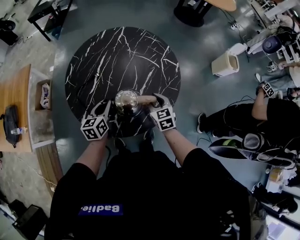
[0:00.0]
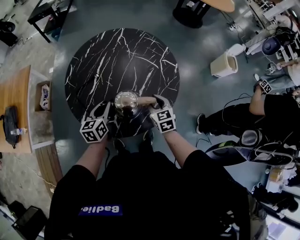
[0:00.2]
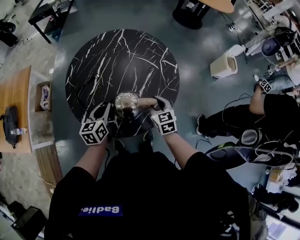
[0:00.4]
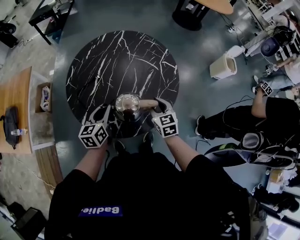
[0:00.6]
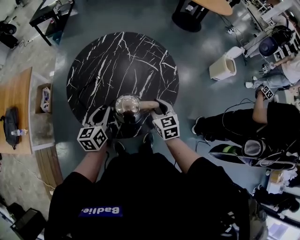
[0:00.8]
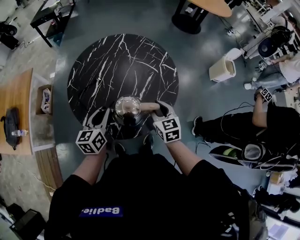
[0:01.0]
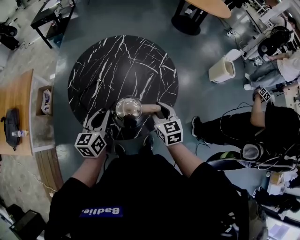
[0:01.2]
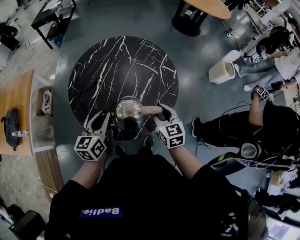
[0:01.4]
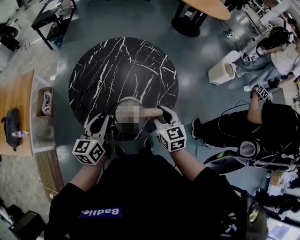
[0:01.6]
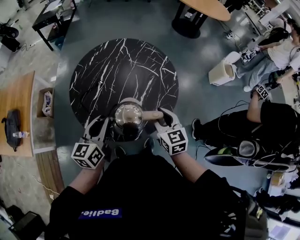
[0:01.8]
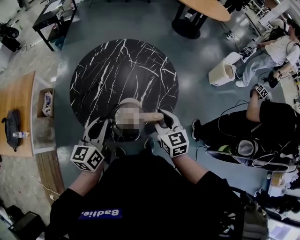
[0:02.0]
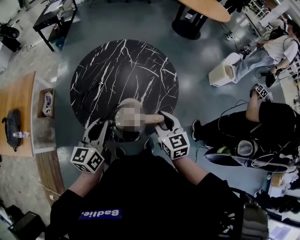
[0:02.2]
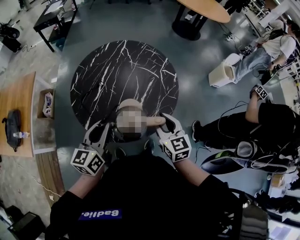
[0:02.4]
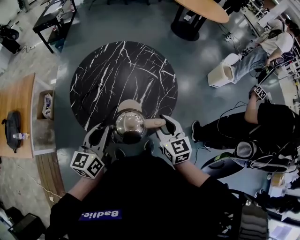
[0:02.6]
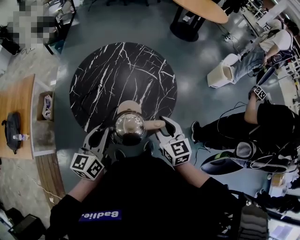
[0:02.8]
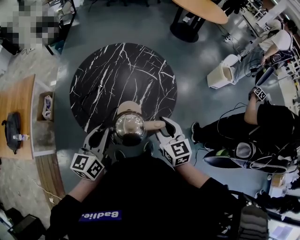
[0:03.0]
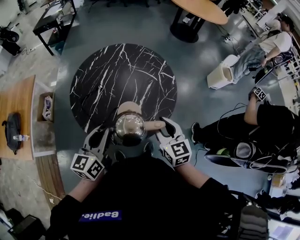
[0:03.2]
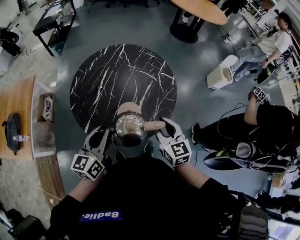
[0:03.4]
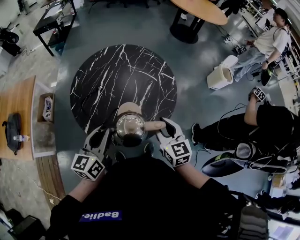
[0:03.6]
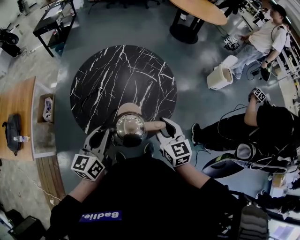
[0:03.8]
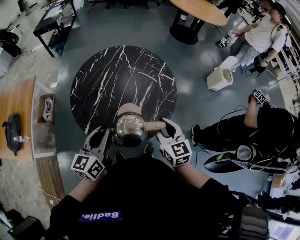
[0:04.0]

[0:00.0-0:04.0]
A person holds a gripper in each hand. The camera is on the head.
0:00.0 to 0:01.4: Both grippers travel together upward and backward, approximately 15 cm.
0:01.4 to 0:02.6: Both grippers travel together upward, about 5 cm.
0:02.6 to 0:04.0: The two grippers keep their place.

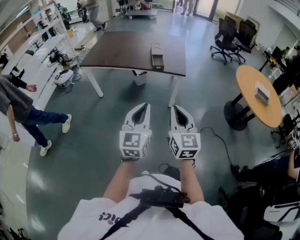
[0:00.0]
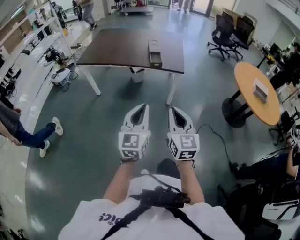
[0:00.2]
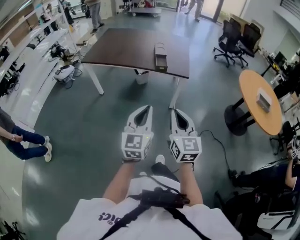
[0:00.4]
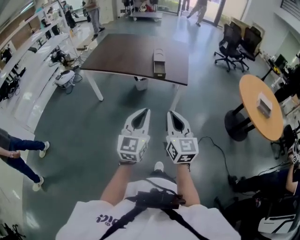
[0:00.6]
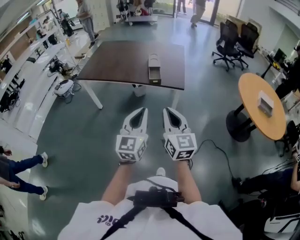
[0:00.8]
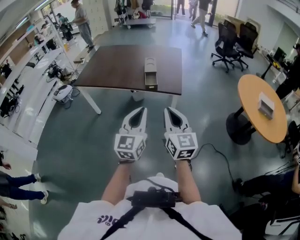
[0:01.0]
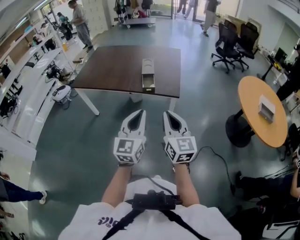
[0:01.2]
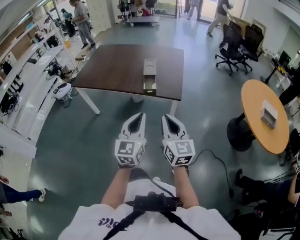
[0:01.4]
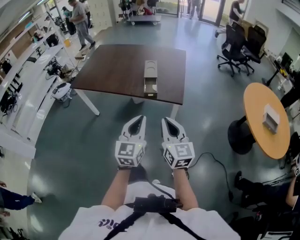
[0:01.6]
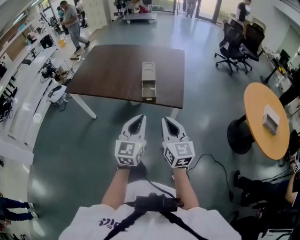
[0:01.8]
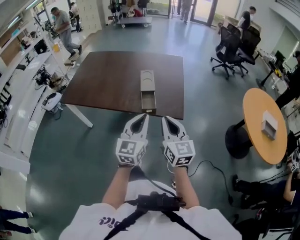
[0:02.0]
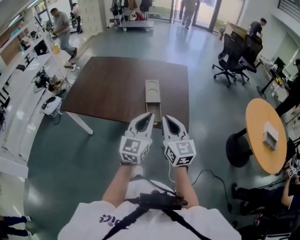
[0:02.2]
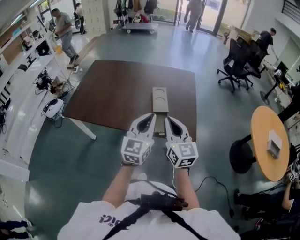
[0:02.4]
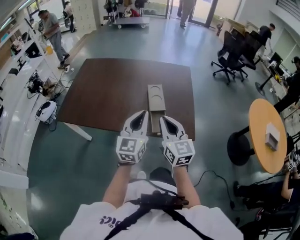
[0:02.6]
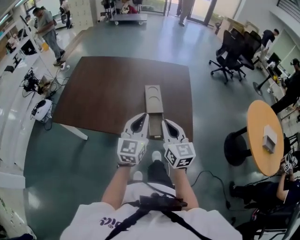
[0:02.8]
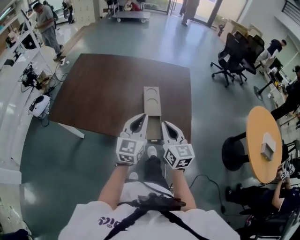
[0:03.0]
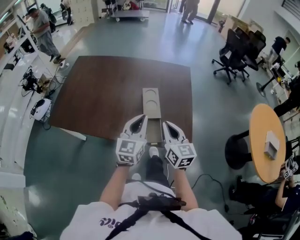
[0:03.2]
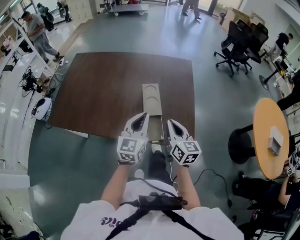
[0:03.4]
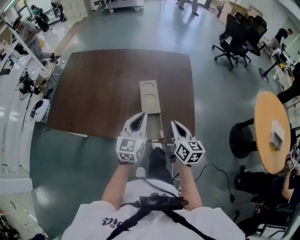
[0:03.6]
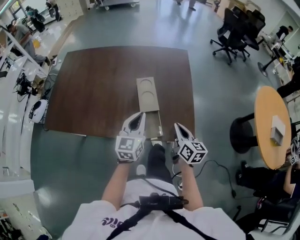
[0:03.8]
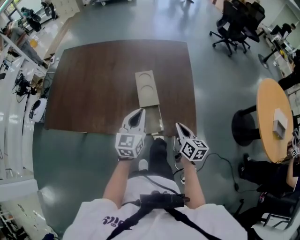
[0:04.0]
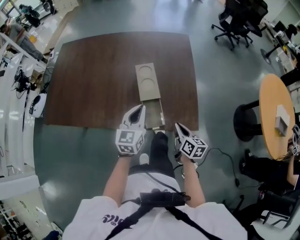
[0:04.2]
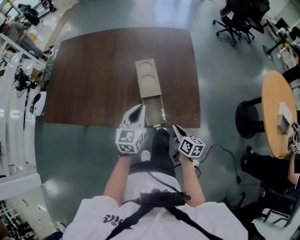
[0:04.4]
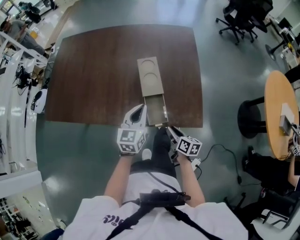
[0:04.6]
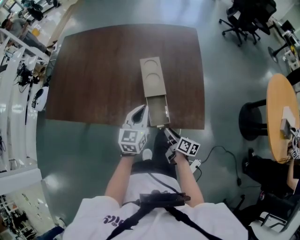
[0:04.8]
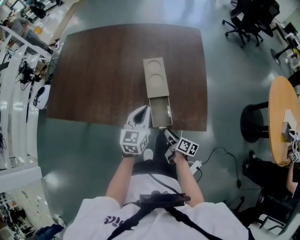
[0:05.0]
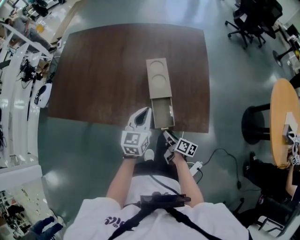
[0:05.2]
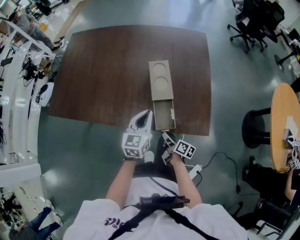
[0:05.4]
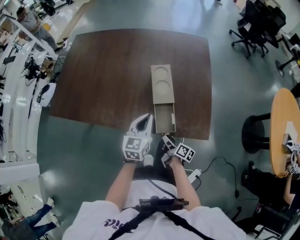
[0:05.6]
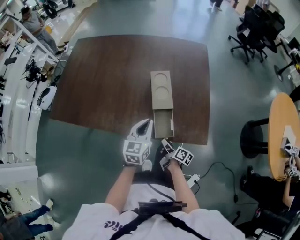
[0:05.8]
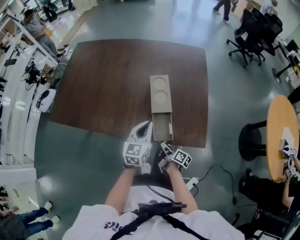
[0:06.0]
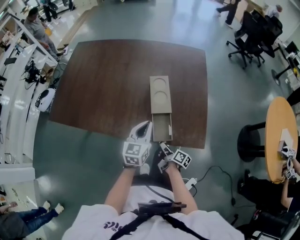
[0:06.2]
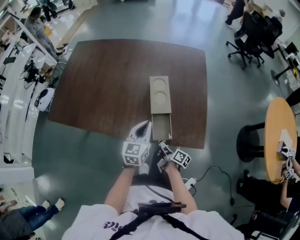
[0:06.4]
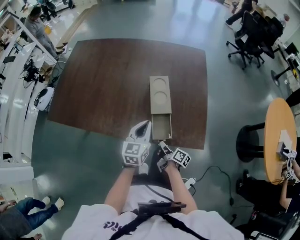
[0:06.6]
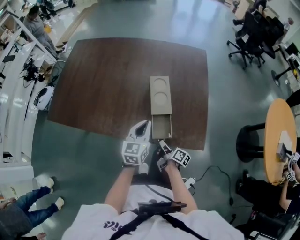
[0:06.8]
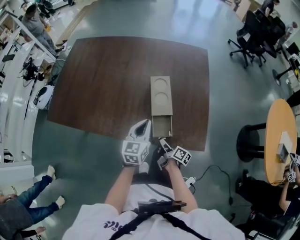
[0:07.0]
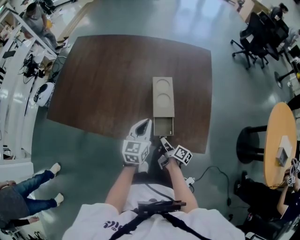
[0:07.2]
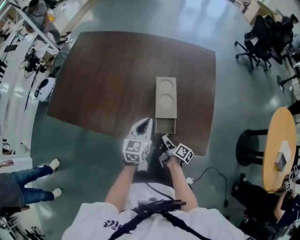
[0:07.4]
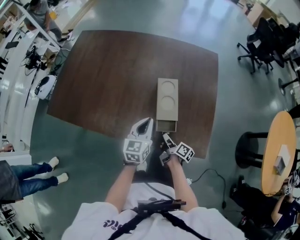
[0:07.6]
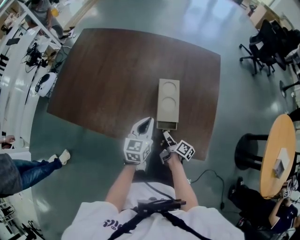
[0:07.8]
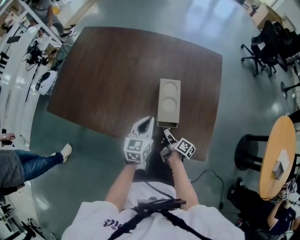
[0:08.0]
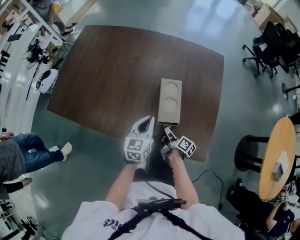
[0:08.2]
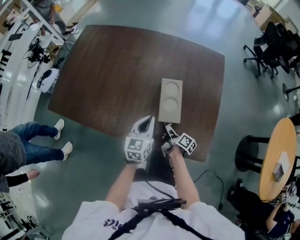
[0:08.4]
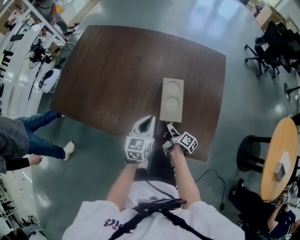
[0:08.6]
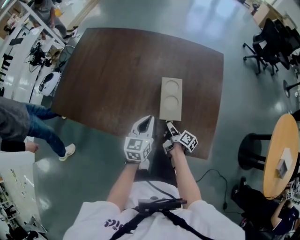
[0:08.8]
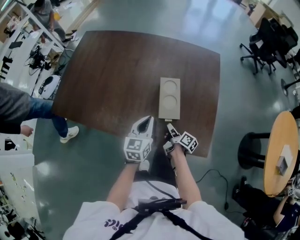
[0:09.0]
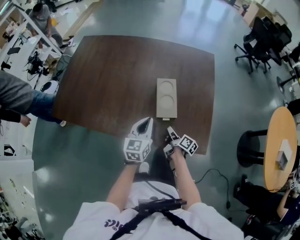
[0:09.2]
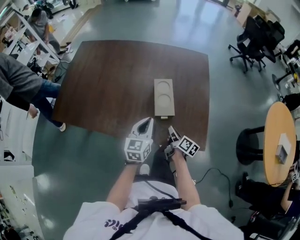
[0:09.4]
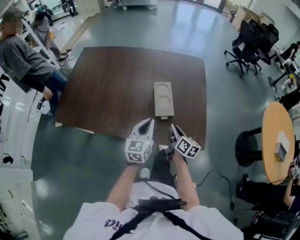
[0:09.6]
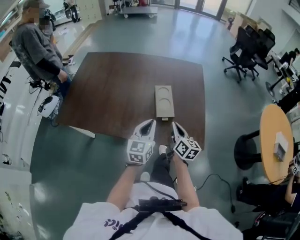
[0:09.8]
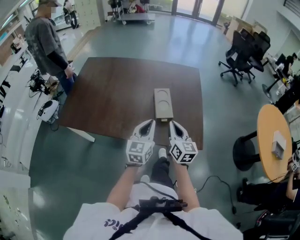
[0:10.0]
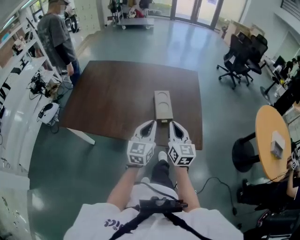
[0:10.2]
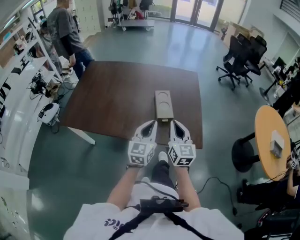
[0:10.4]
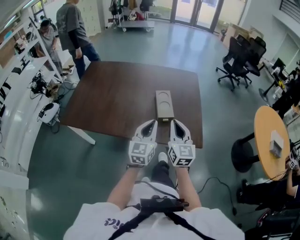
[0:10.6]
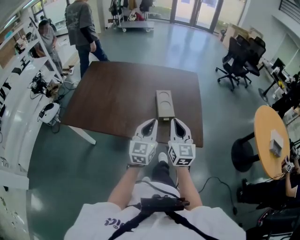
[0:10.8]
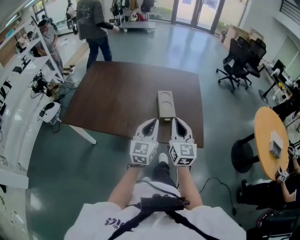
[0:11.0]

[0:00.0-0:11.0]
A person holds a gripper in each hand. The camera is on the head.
0:00.0 to 0:01.6: Both grippers move forward, roughly 30 cm.
0:01.6 to 0:03.2: The pair of grippers is taken forward, approximately 40 cm.
0:03.2 to 0:04.8: The right gripper shifts about 30 cm downward, rotates around the line of its fingers by approximately 50 degrees, clockwise from behind, and opens up, while the left gripper is displaced downward by approximately 15 cm.
0:04.8 to 0:06.2: The right gripper changes place by approximately 5 cm.
0:06.2 to 0:07.8: Both grippers move forward, about 10 cm.
0:07.8 to 0:09.4: The right gripper goes approximately 5 cm upward. Meanwhile the left gripper moves approximately 5 cm.
0:09.4 to 0:11.0: The right gripper travels upward and backward by roughly 35 cm, and twists about 60 degrees counterclockwise, seen from behind. The left gripper shifts approximately 20 cm upward and backward.

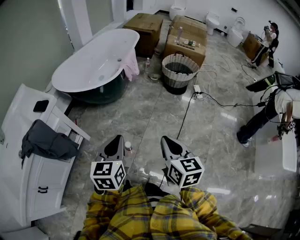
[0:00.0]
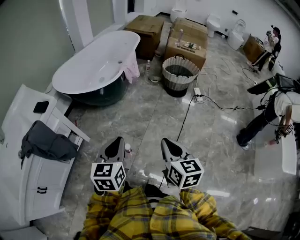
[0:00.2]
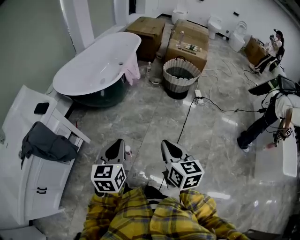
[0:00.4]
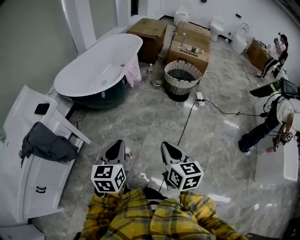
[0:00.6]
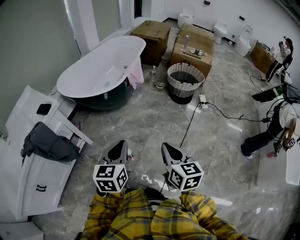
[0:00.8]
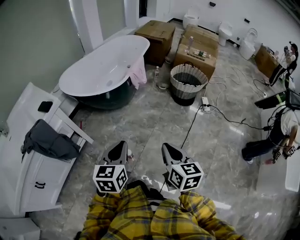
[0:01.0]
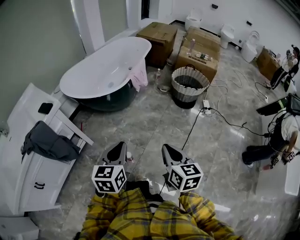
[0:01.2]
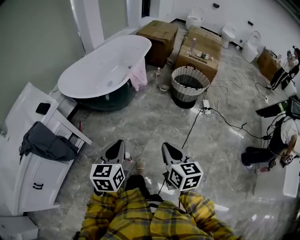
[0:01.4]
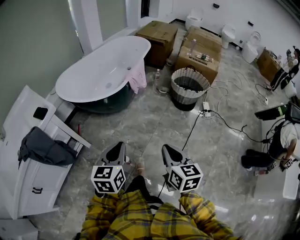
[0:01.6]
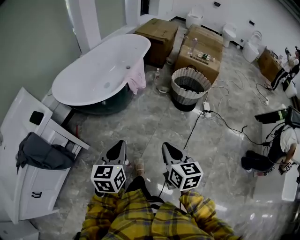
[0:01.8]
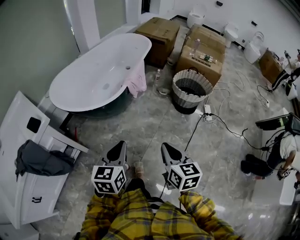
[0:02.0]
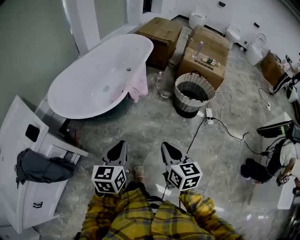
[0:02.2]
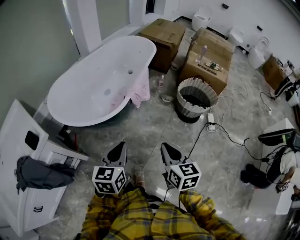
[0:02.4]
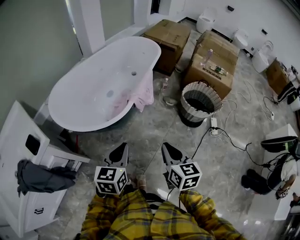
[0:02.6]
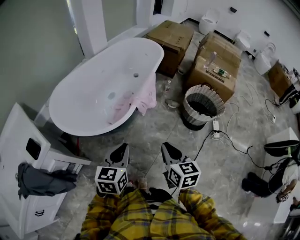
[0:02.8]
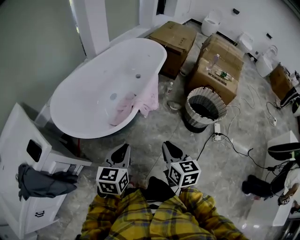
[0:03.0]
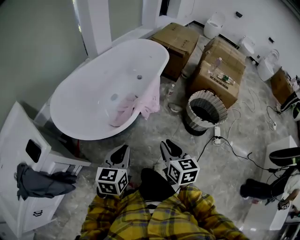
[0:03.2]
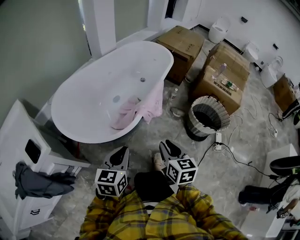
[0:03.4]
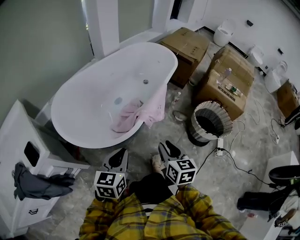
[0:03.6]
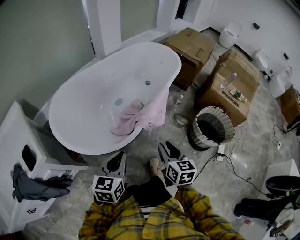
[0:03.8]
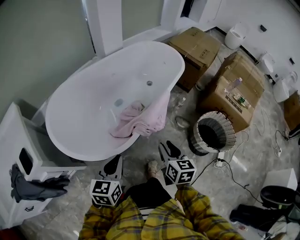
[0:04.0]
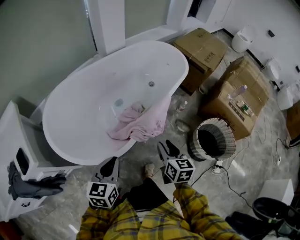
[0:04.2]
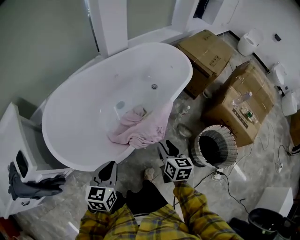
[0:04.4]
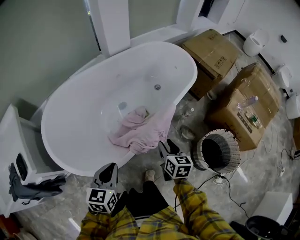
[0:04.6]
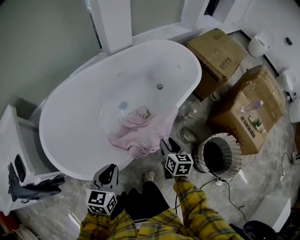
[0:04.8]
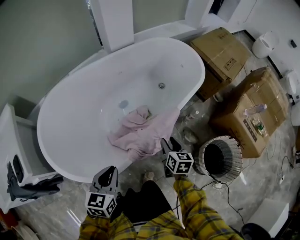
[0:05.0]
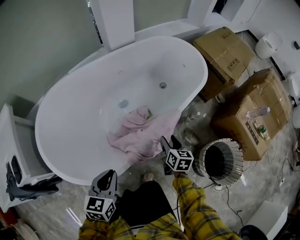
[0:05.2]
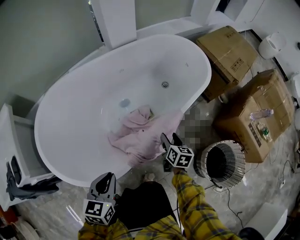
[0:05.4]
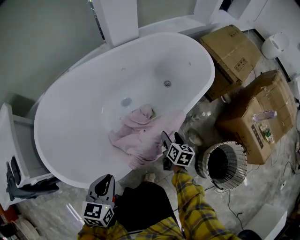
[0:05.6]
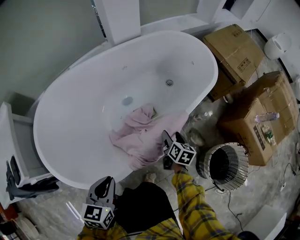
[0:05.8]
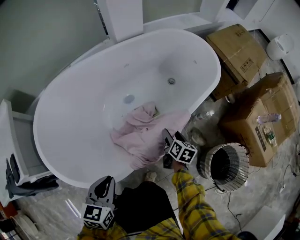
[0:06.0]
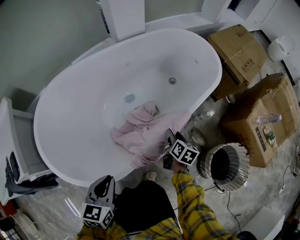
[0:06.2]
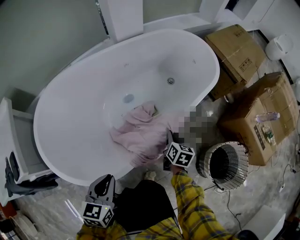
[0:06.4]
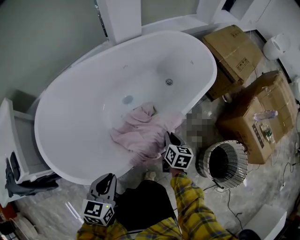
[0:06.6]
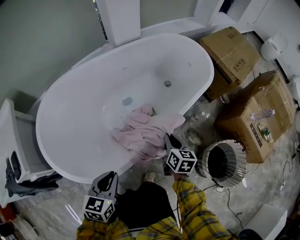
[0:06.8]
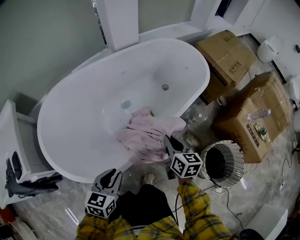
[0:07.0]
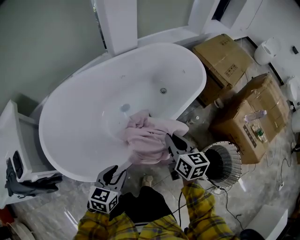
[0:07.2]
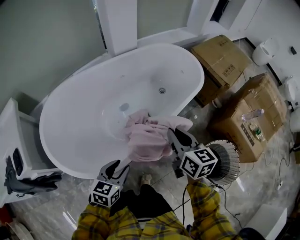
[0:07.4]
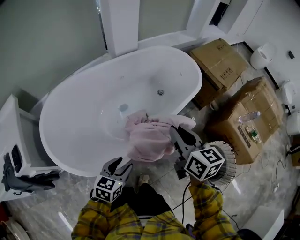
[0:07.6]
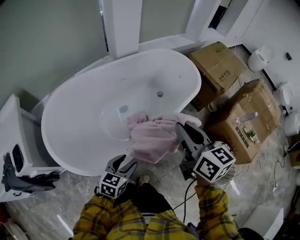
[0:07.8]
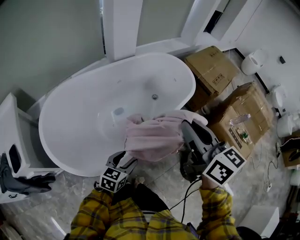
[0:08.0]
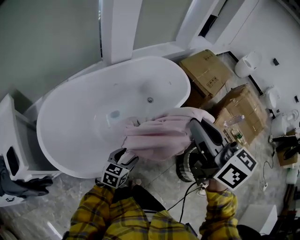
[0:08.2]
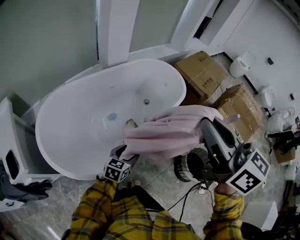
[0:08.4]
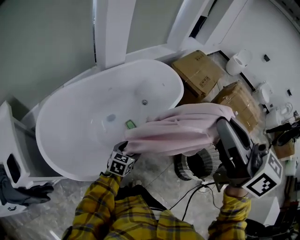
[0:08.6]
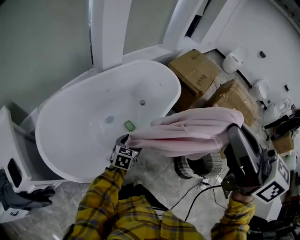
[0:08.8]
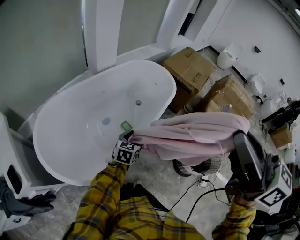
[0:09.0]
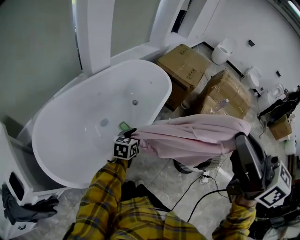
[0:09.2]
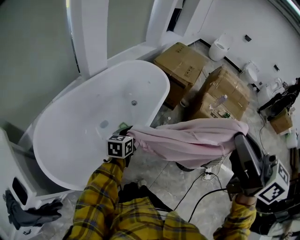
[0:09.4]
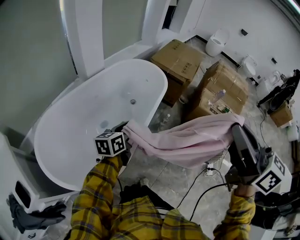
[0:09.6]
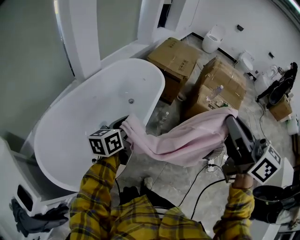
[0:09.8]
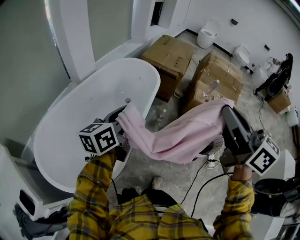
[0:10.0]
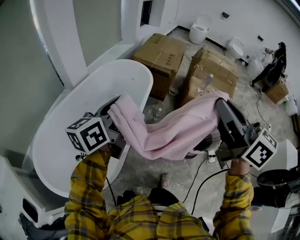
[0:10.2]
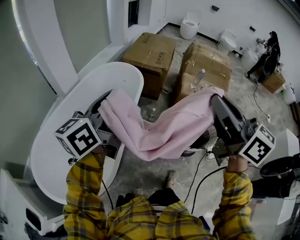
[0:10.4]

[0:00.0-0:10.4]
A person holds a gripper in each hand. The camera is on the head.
0:00.0 to 0:01.4: The left gripper changes place by approximately 5 cm. Meanwhile the right gripper shifts about 5 cm forward.
0:01.4 to 0:03.0: Both grippers move forward, about 30 cm.
0:03.0 to 0:04.4: The right gripper is displaced forward by some 30 cm, and opens up, while the left gripper is displaced forward by about 15 cm.
0:04.4 to 0:06.0: The left gripper moves downward, approximately 5 cm. The right gripper travels downward and forward by about 25 cm, and opens.
0:06.0 to 0:07.4: The right gripper moves upward, about 30 cm, rotates approximately 30 degrees, and closes. Meanwhile the left gripper goes roughly 5 cm to the right, and opens.
0:07.4 to 0:09.0: The left gripper moves forward and to the right, approximately 15 cm, and opens; the right gripper is displaced upward by some 40 cm, and rotates about 20 degrees.
0:09.0 to 0:10.4: The left gripper moves upward, some 35 cm, tilts its fingers some 40 degrees upward, and closes up, while the right gripper is displaced to the right and downward by about 15 cm, and changes its angle by about 20 degrees.
